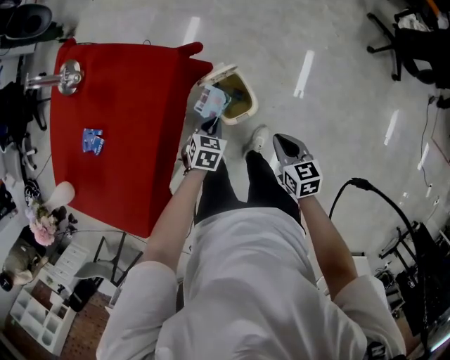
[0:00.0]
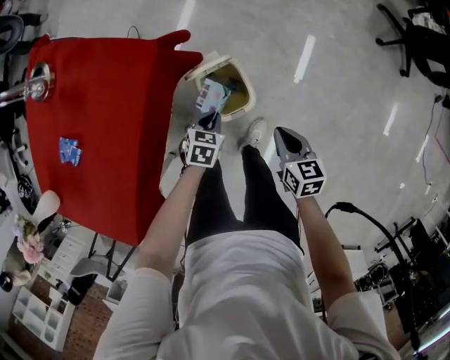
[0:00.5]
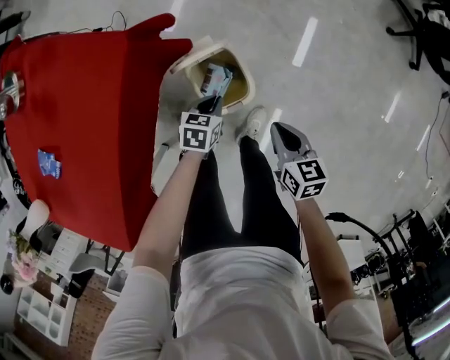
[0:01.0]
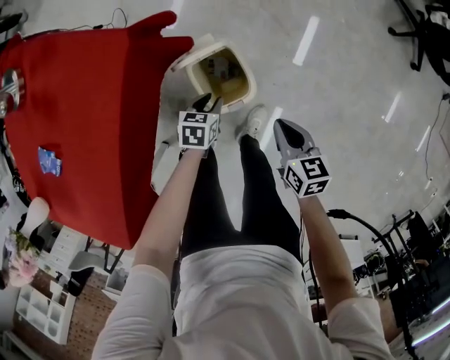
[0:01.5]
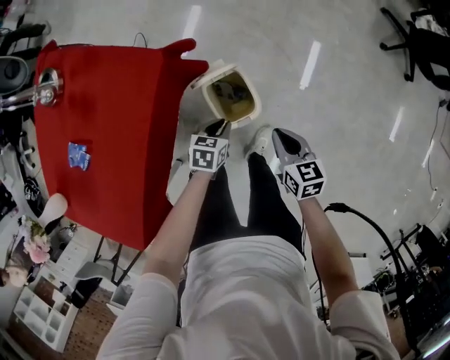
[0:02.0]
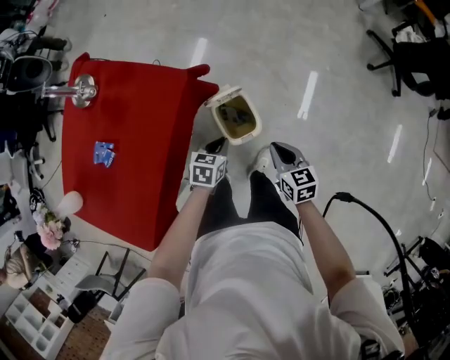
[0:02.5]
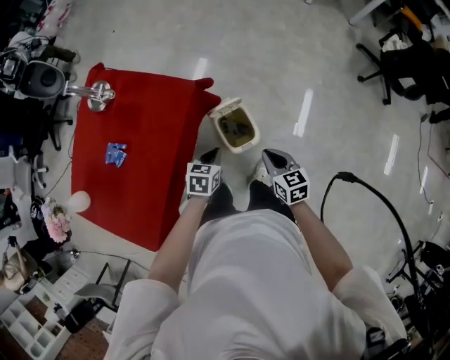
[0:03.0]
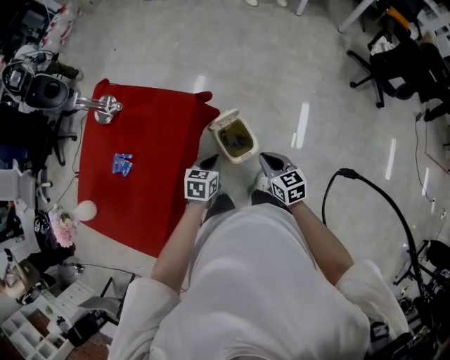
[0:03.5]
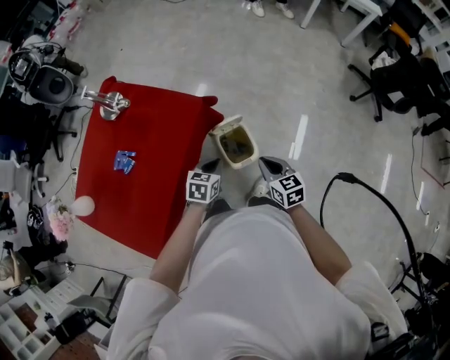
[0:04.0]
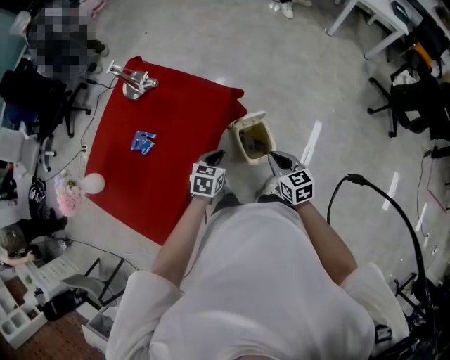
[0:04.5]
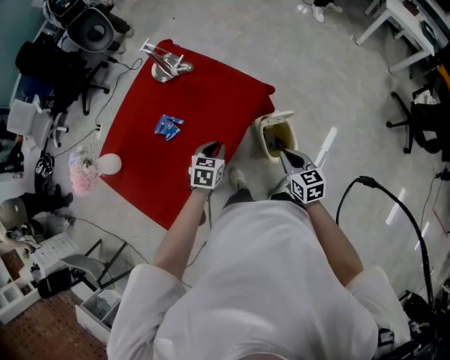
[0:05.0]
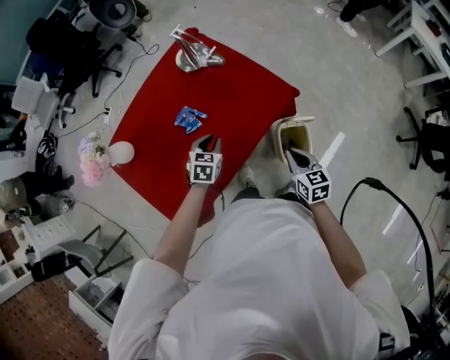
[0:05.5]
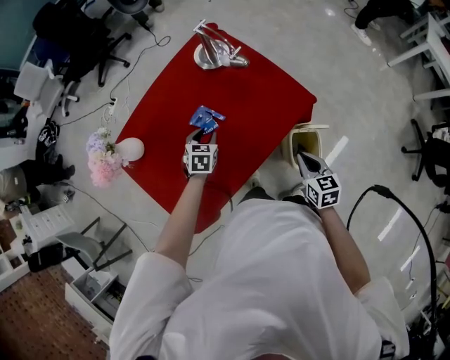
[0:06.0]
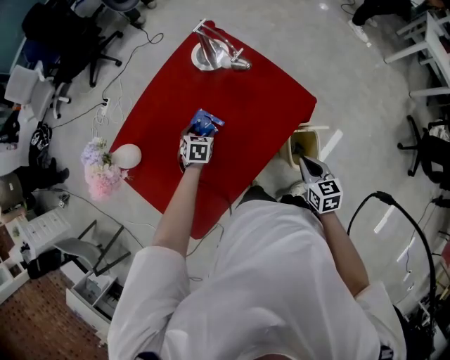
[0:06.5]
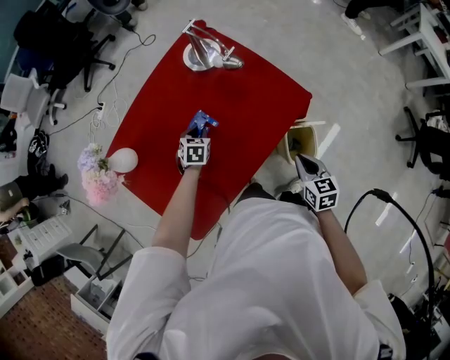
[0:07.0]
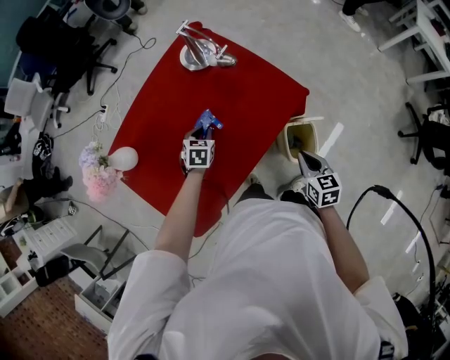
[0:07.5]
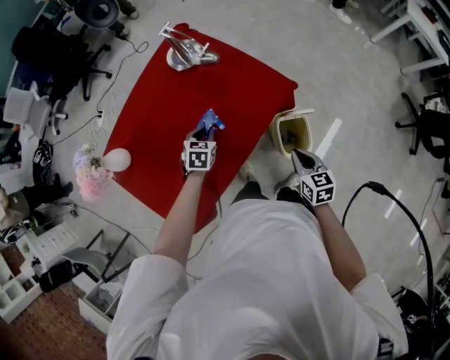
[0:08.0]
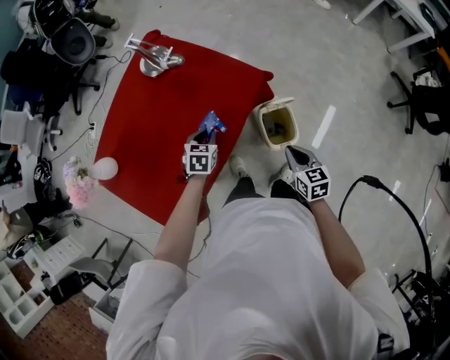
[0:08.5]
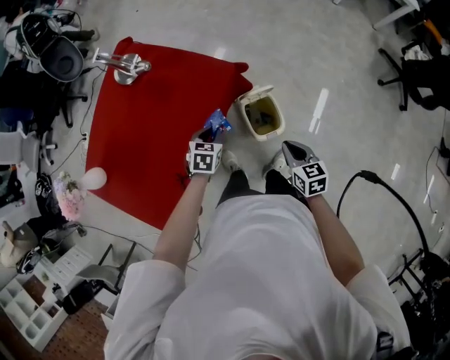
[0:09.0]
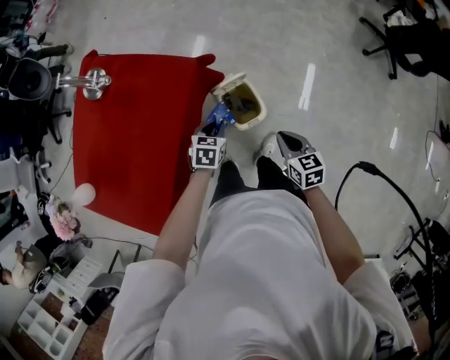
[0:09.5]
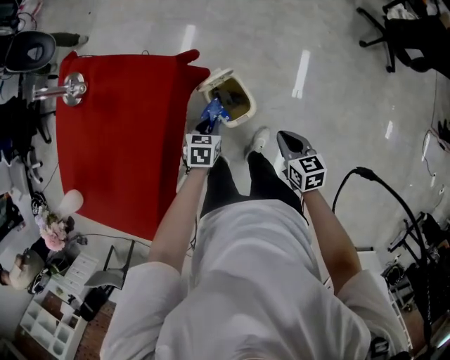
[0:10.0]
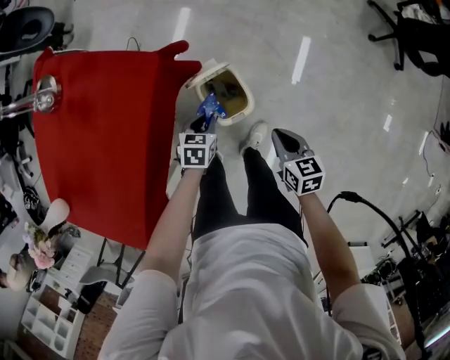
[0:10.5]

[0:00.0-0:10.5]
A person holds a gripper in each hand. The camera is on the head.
0:00.0 to 0:02.0: The grippers both shift downward by about 10 cm.
0:02.0 to 0:04.0: The two grippers go roughly 20 cm upward.
0:04.0 to 0:06.5: The left gripper changes place by some 50 cm, turns by approximately 30 degrees, and opens up. Meanwhile the right gripper shifts by roughly 25 cm.
0:06.5 to 0:08.5: The left gripper moves to the right, approximately 20 cm, and closes its fingers. Meanwhile the right gripper is displaced to the right and backward by about 15 cm.
0:08.5 to 0:10.5: Both grippers move to the right and downward, roughly 30 cm.

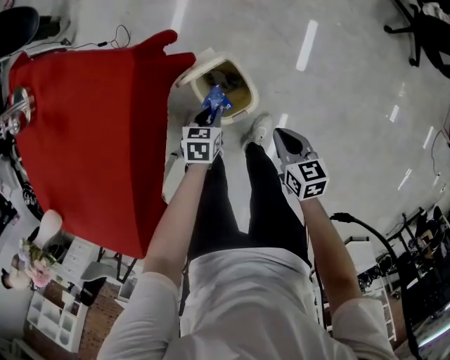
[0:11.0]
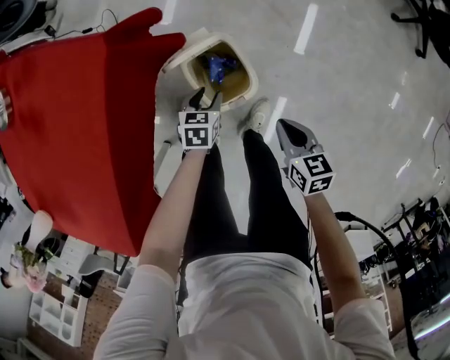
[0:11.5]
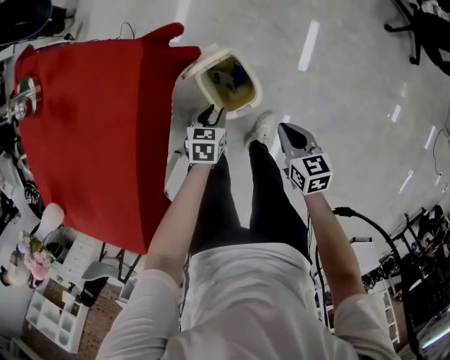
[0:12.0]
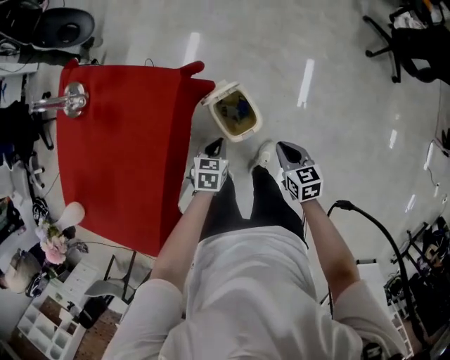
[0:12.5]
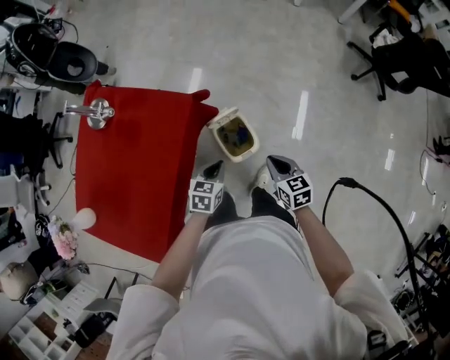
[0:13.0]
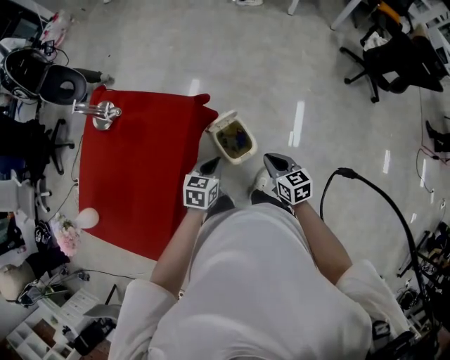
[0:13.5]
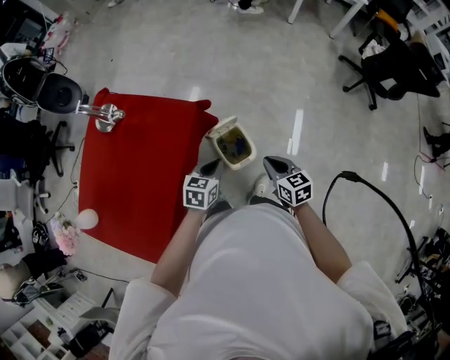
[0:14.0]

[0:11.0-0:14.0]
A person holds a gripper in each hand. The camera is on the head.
0:11.0 to 0:12.5: Both grippers move upward, some 15 cm.
0:12.5 to 0:14.0: The grippers both shift upward by roughly 20 cm.

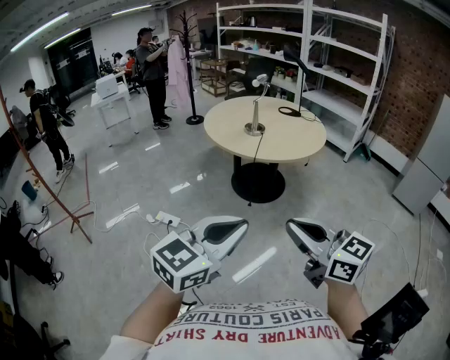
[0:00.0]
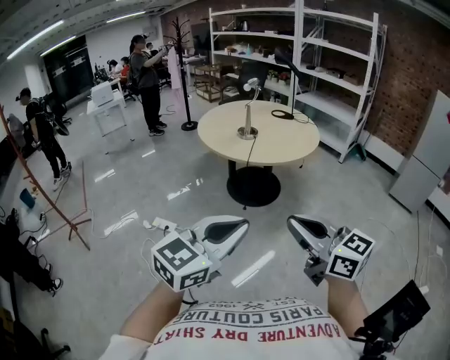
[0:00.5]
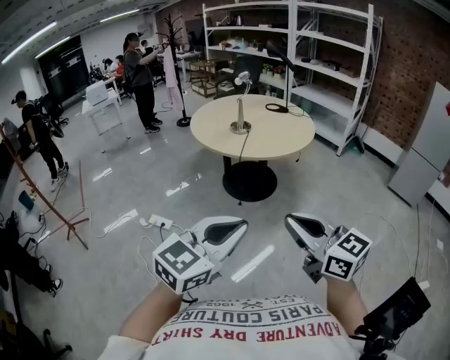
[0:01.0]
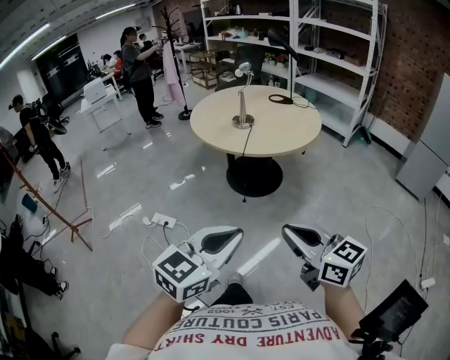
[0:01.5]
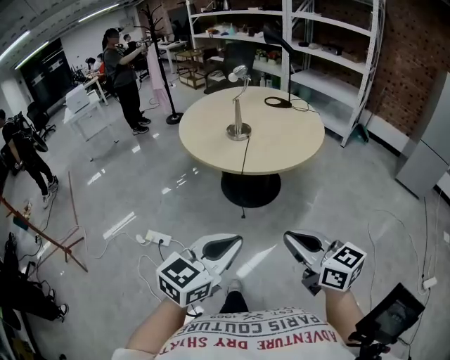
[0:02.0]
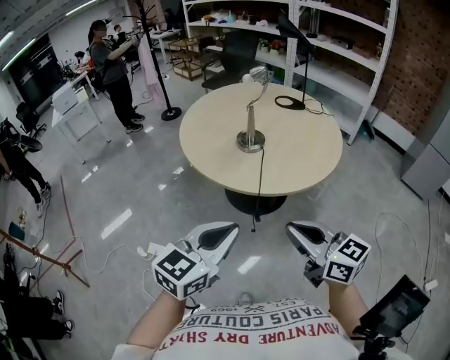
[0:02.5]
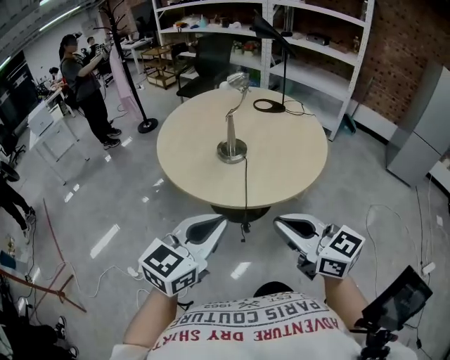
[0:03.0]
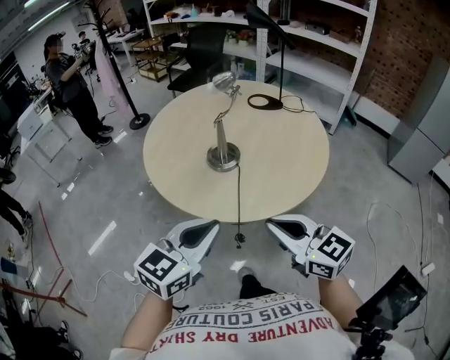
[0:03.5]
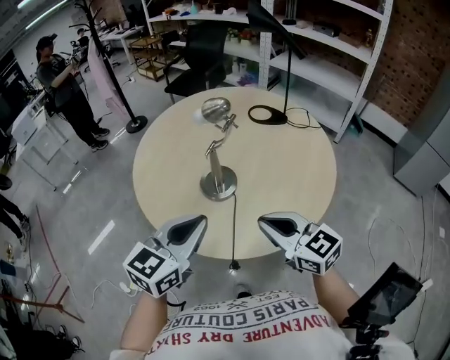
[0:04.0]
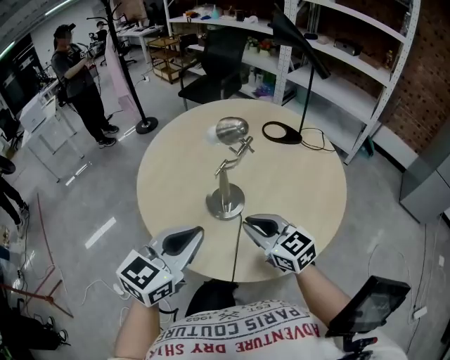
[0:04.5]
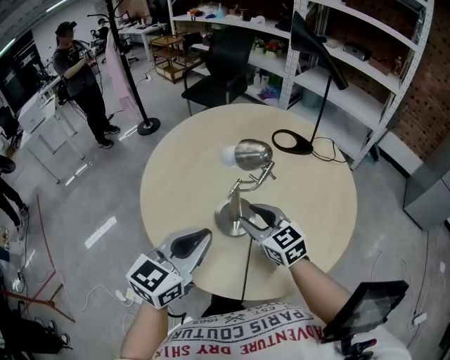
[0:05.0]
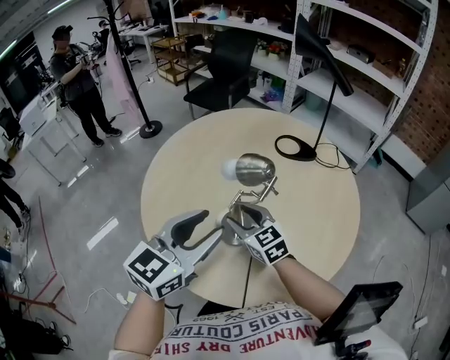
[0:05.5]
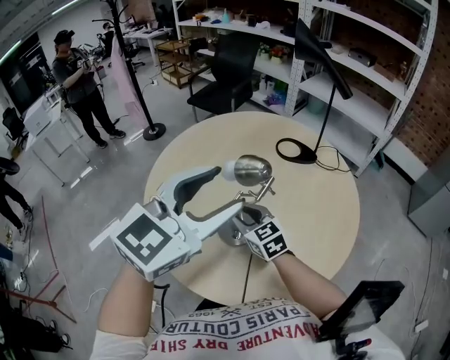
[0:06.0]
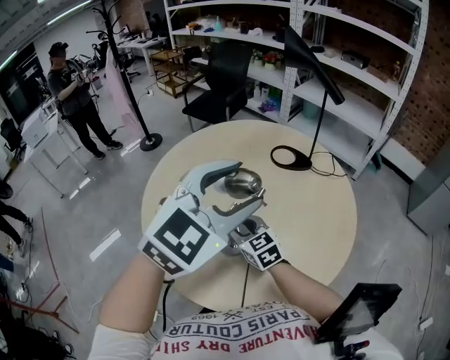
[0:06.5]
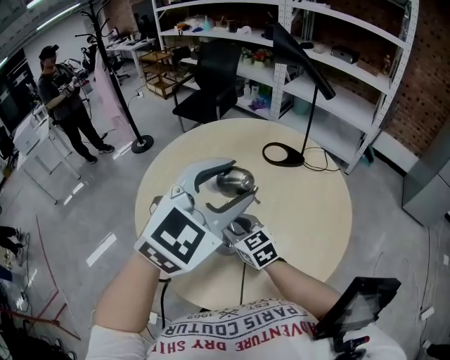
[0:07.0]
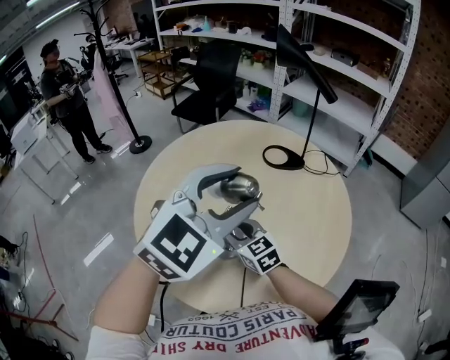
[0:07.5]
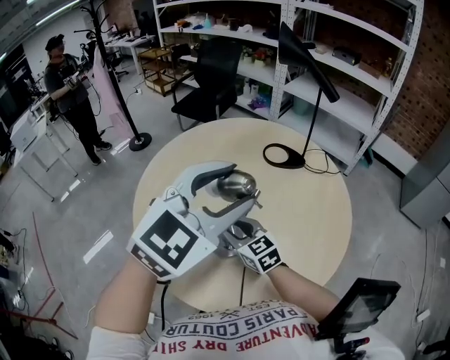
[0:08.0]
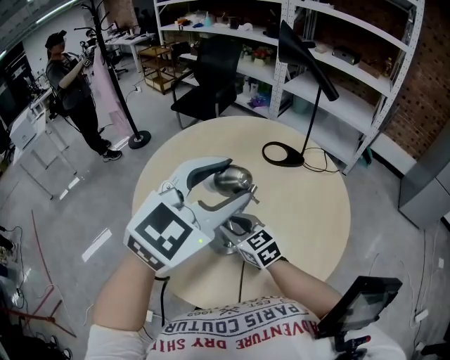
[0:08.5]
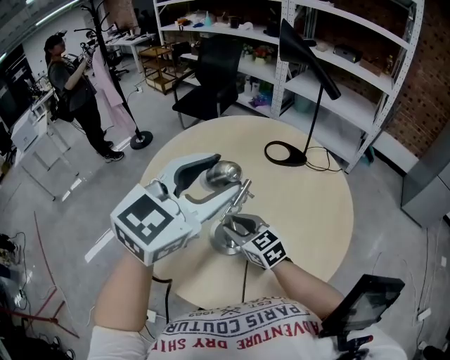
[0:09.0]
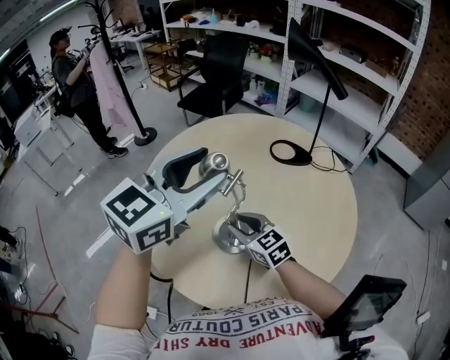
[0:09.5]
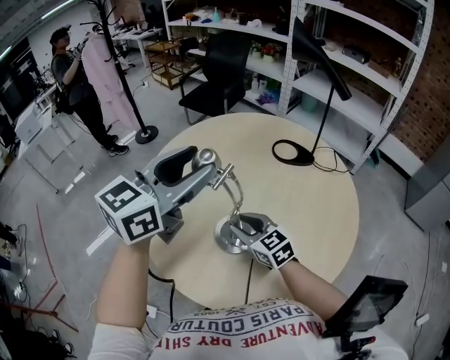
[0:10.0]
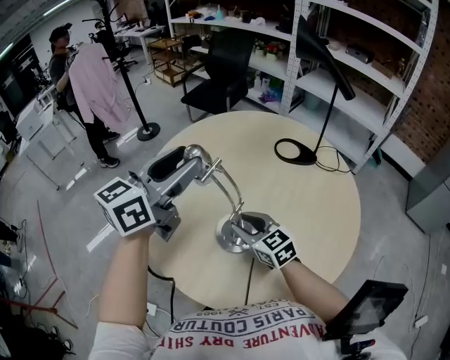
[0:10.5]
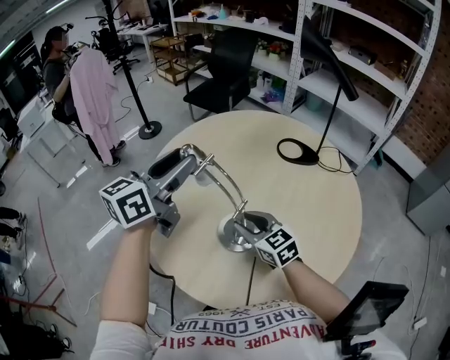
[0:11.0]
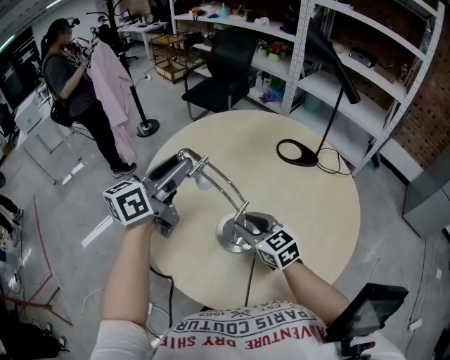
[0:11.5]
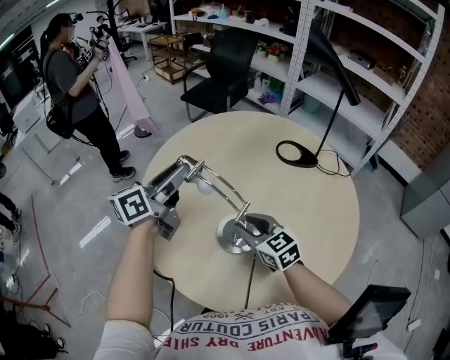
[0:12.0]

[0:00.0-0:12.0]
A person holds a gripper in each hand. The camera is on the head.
0:00.0 to 0:02.0: Both grippers move forward and downward, some 20 cm.
0:02.0 to 0:04.0: The two grippers travel together, forward, roughly 50 cm.
0:04.0 to 0:06.0: The left gripper goes about 20 cm forward and upward, and opens its fingers. Meanwhile the right gripper is displaced forward, downward and to the left by some 30 cm, and opens up.
0:06.0 to 0:08.0: The left gripper shifts by roughly 5 cm.
0:08.0 to 0:10.0: The left gripper shifts approximately 10 cm to the left, and rotates approximately 30 degrees.
0:10.0 to 0:12.0: The left gripper goes roughly 15 cm downward, to the left and forward, and swivels about 40 degrees.

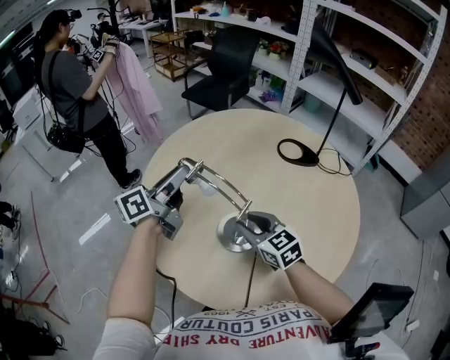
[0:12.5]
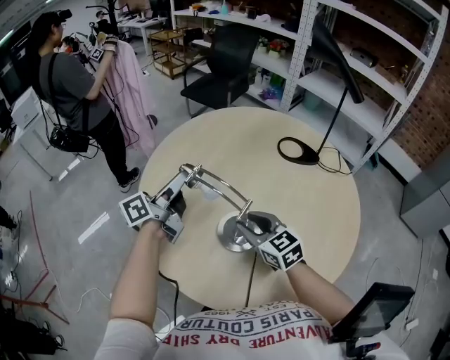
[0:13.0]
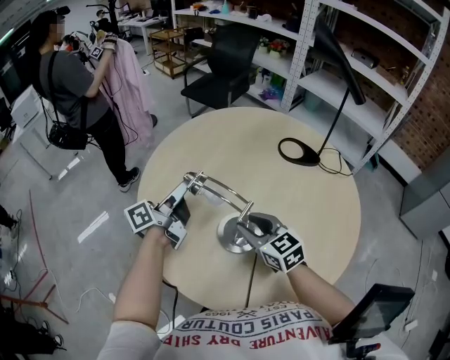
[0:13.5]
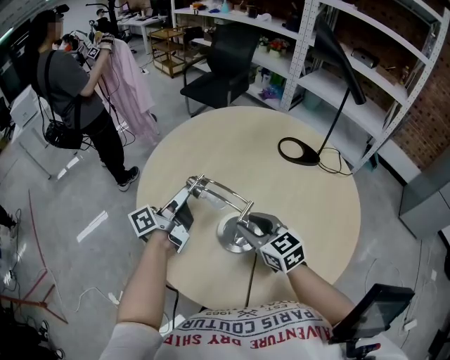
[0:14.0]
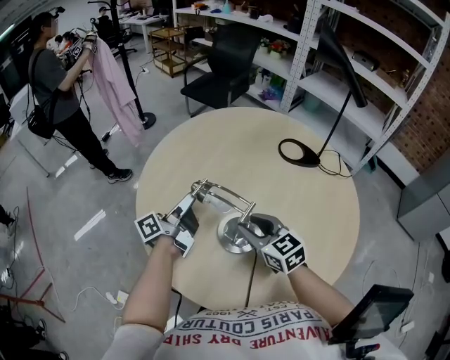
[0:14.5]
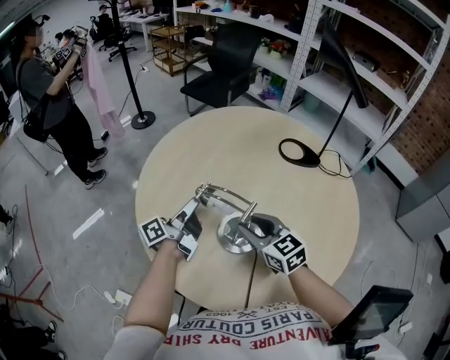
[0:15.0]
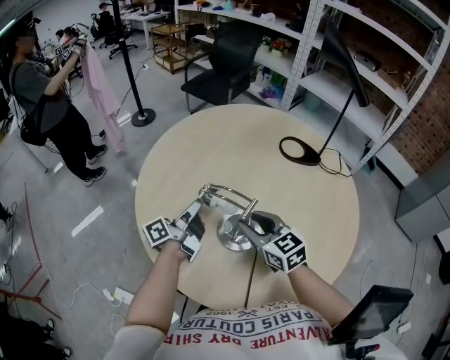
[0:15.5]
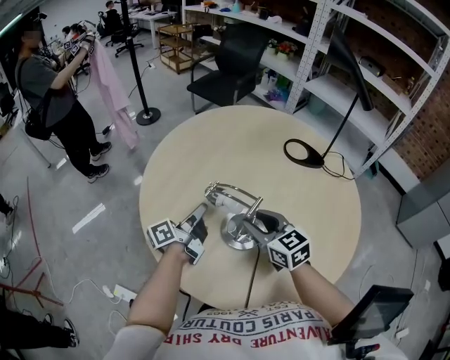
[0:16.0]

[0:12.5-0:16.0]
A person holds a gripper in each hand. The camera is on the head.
0:12.5 to 0:14.5: The left gripper moves downward, some 10 cm, and swivels roughly 20 degrees.
0:14.5 to 0:16.0: The left gripper moves approximately 5 cm, and closes its fingers.
